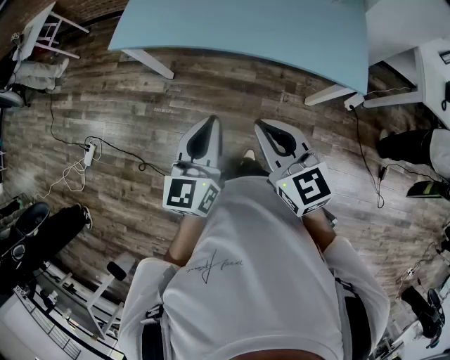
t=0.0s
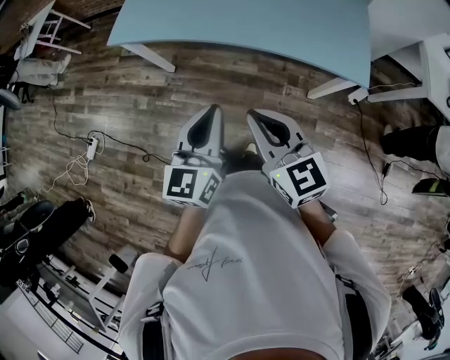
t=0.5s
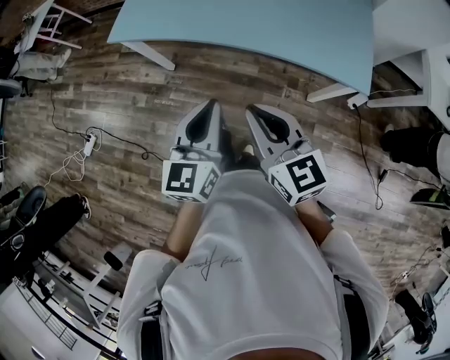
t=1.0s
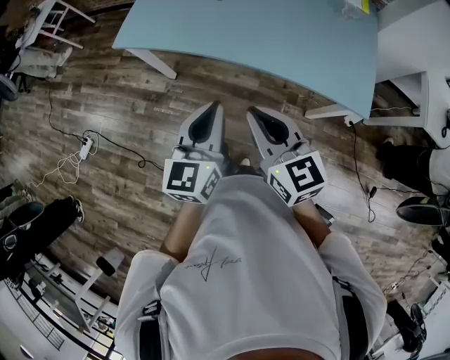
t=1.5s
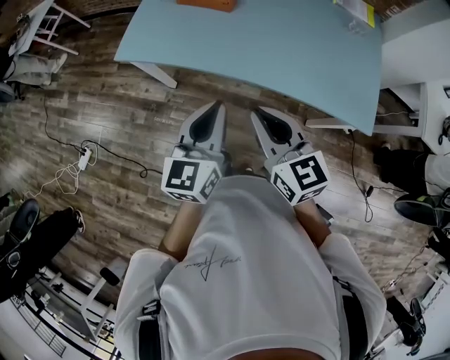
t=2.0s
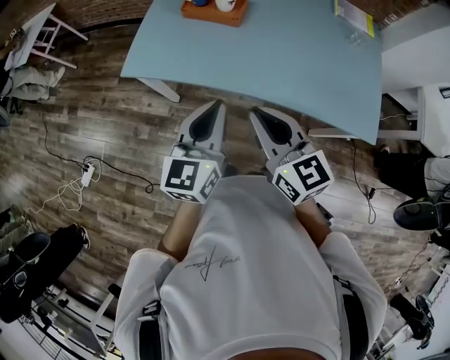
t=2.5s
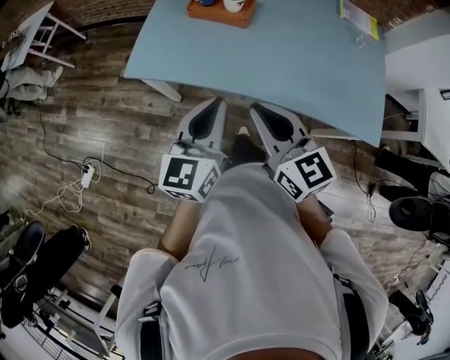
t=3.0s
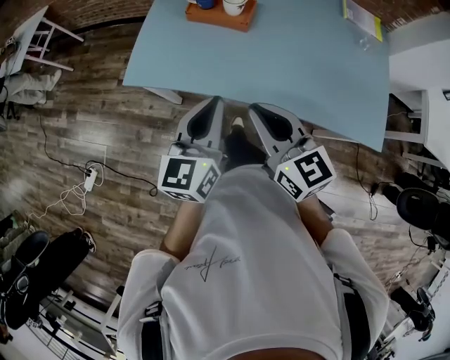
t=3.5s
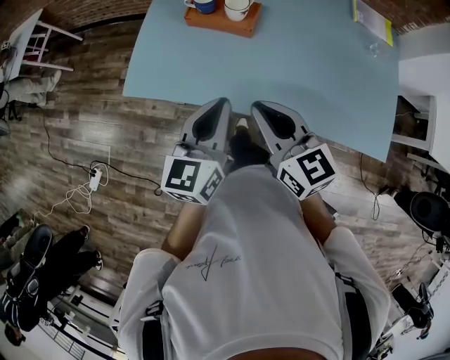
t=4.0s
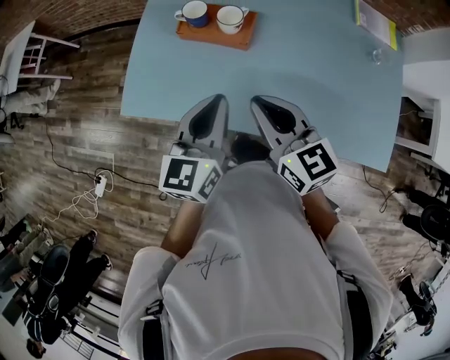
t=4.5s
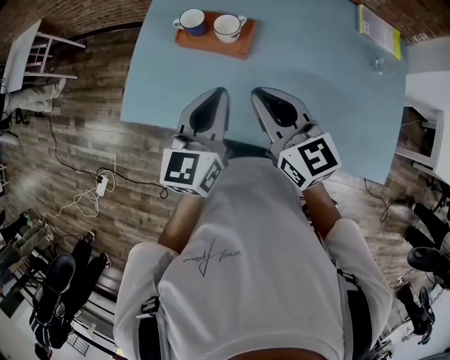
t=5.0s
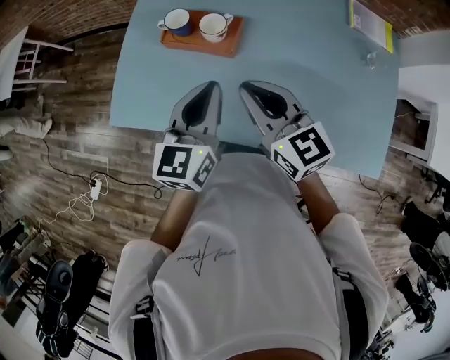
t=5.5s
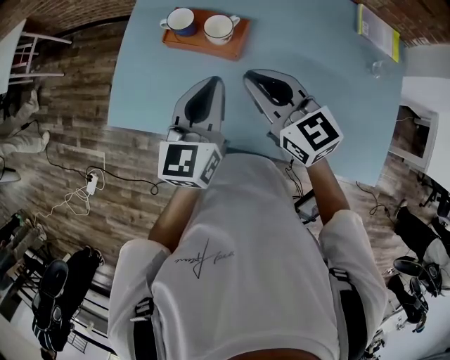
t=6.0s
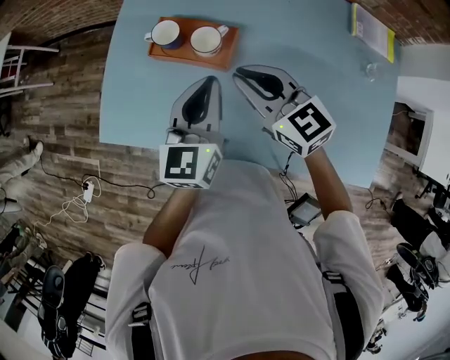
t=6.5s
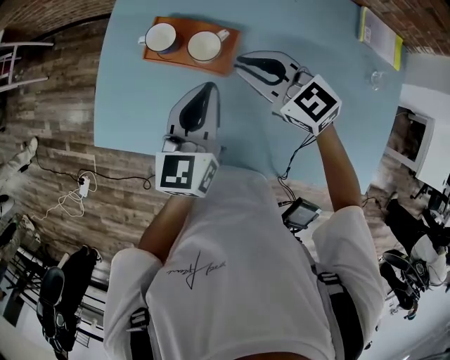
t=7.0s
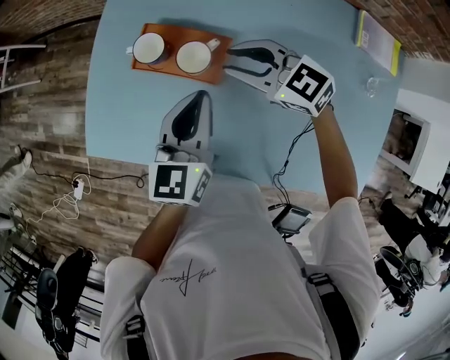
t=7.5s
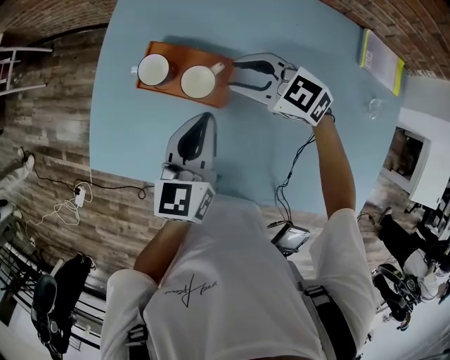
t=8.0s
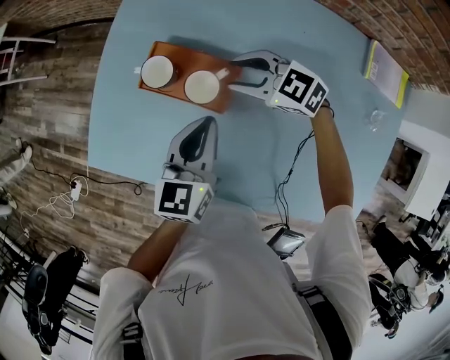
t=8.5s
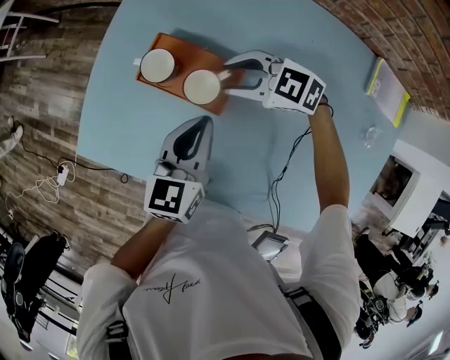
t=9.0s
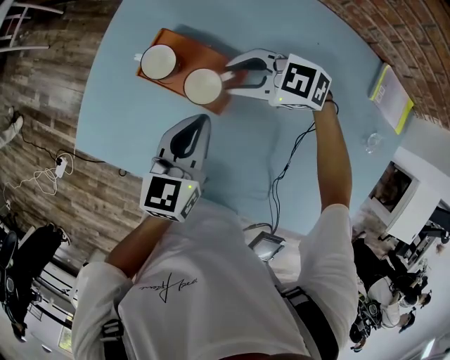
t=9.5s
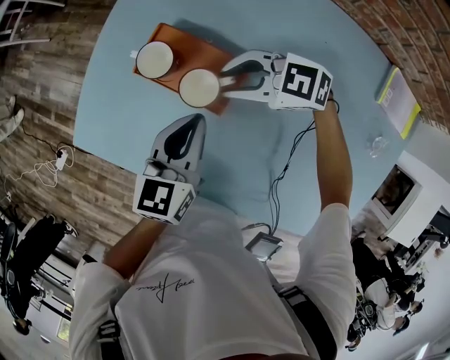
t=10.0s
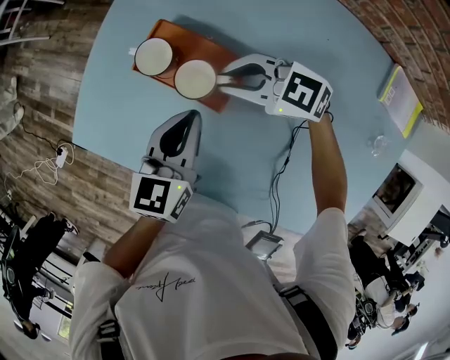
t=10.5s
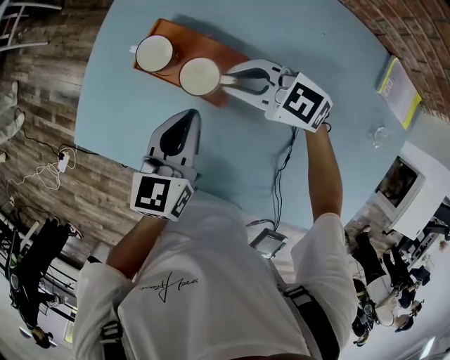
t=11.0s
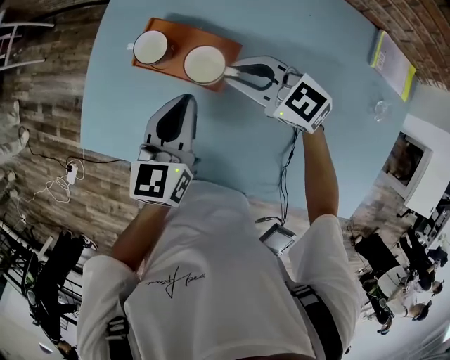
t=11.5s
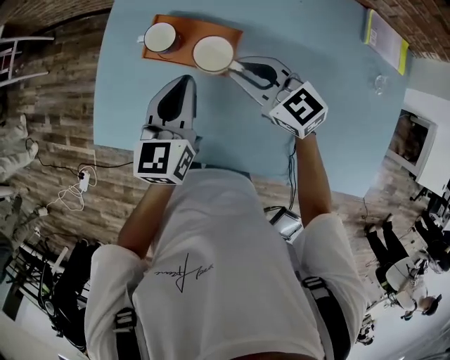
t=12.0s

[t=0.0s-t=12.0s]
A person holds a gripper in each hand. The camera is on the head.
t=0.0s to t=2.0s: The two grippers go some 15 cm forward.
t=2.0s to t=4.0s: The two grippers go roughly 15 cm forward.
t=4.0s to t=6.0s: Both grippers move forward, some 15 cm.
t=6.0s to t=8.0s: The right gripper moves forward, downward and to the right, roughly 20 cm, turns by roughly 30 degrees, and opens up. Meanwhile the left gripper is displaced forward, downward and to the right by about 10 cm.
t=8.0s to t=10.0s: The right gripper ends up some 5 cm from where it was, and rotates approximately 30 degrees, while the left gripper changes place by about 5 cm.
t=10.0s to t=12.0s: The right gripper is displaced upward by roughly 5 cm, and changes its angle by approximately 50 degrees; the left gripper moves approximately 5 cm.

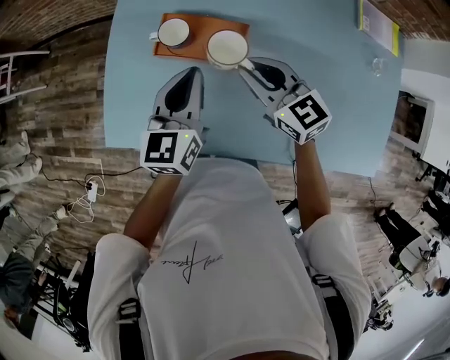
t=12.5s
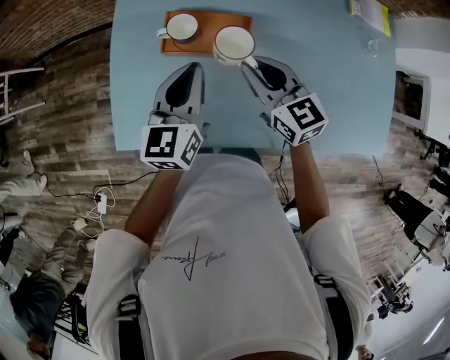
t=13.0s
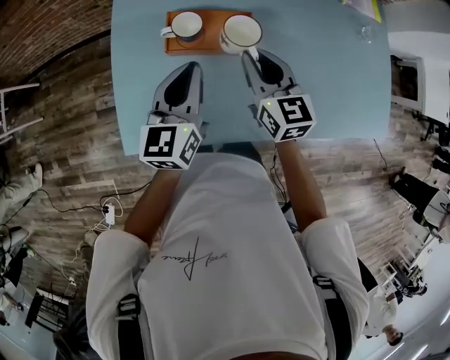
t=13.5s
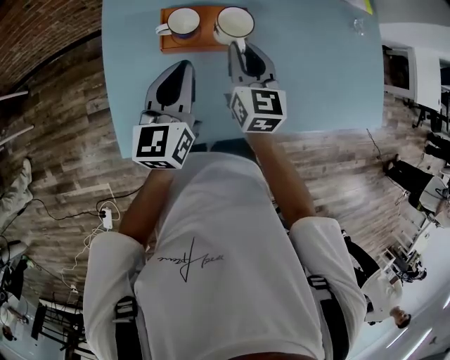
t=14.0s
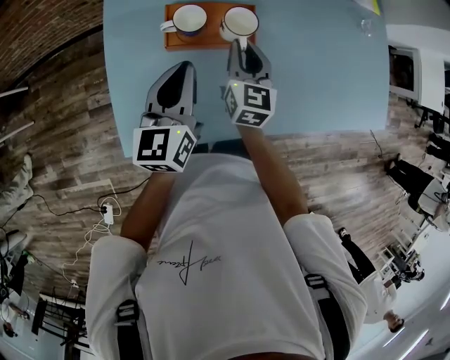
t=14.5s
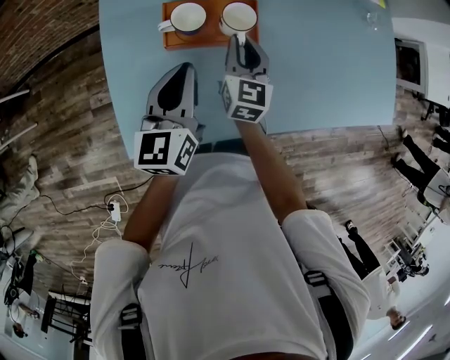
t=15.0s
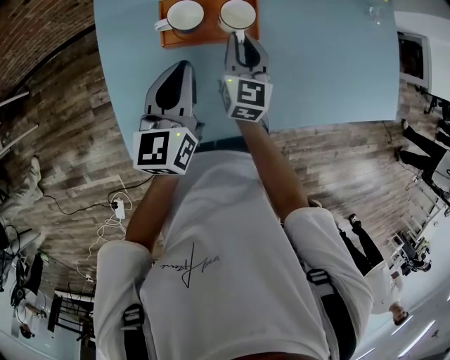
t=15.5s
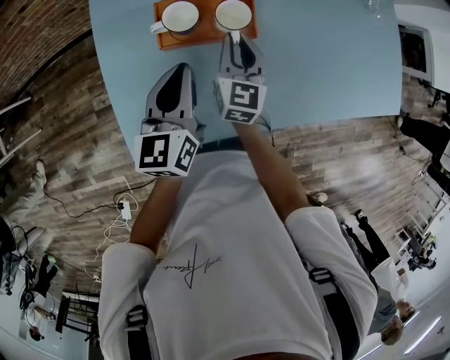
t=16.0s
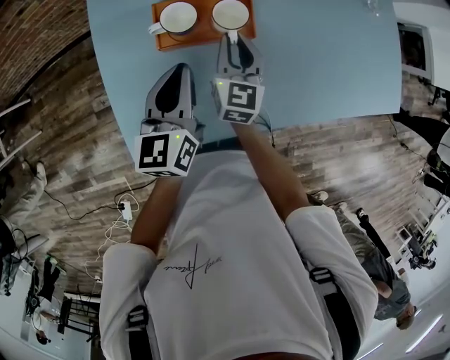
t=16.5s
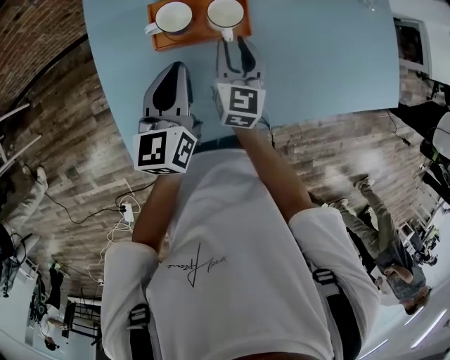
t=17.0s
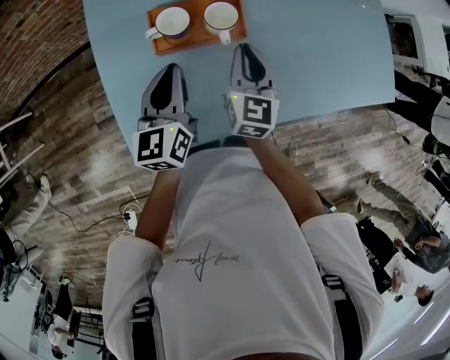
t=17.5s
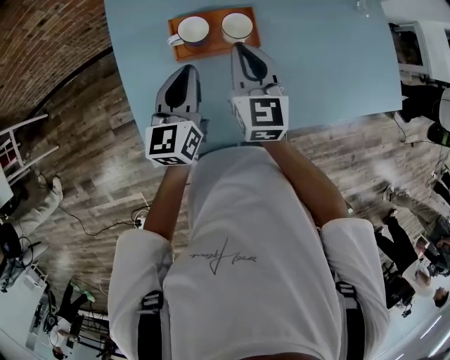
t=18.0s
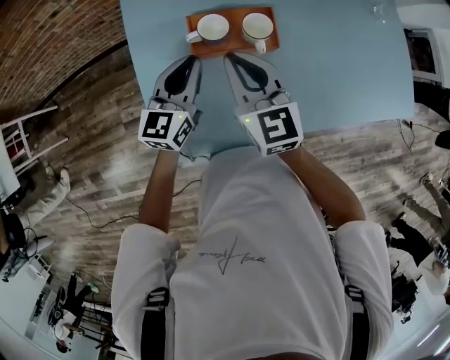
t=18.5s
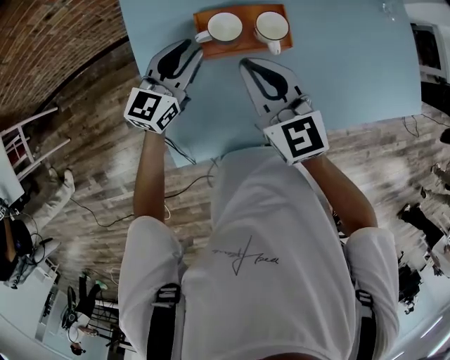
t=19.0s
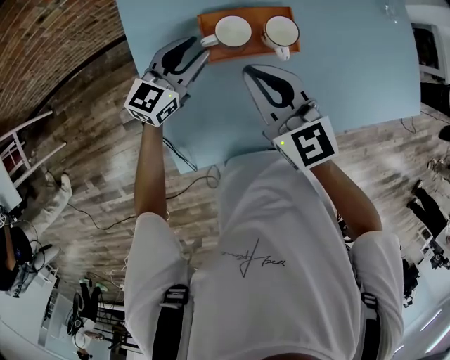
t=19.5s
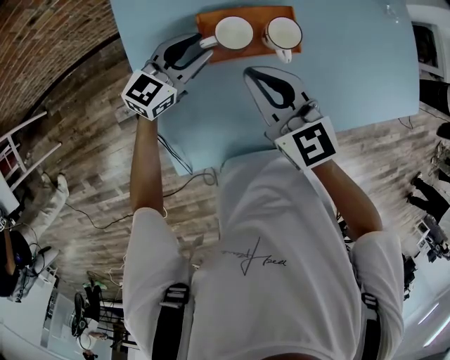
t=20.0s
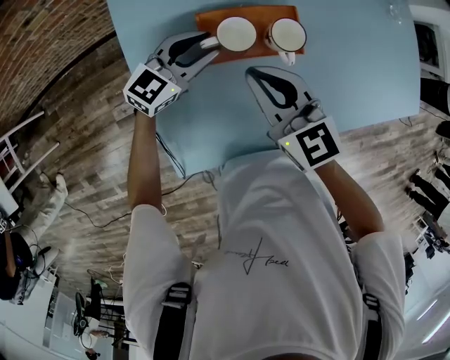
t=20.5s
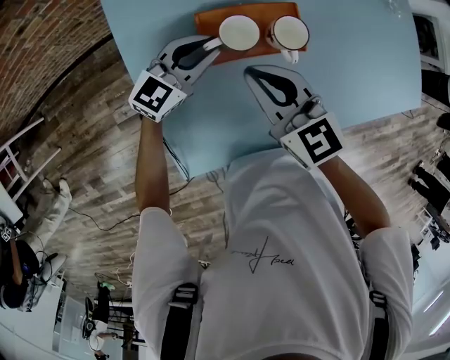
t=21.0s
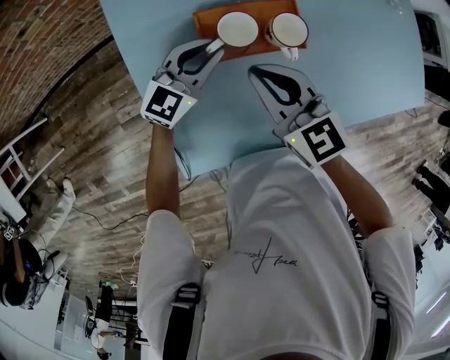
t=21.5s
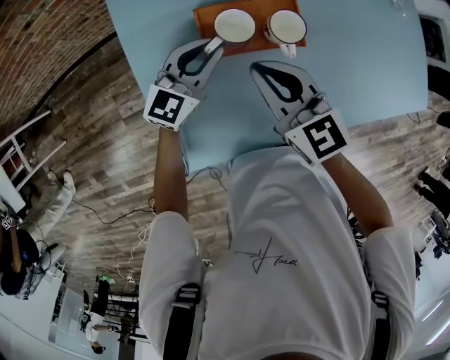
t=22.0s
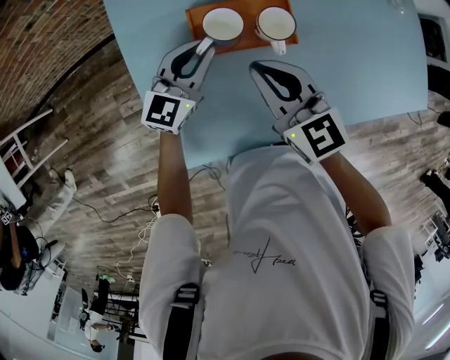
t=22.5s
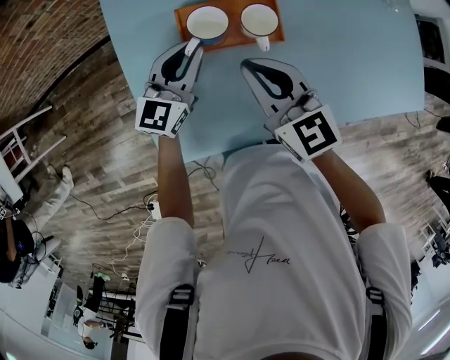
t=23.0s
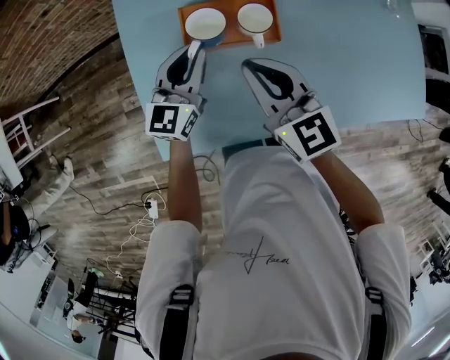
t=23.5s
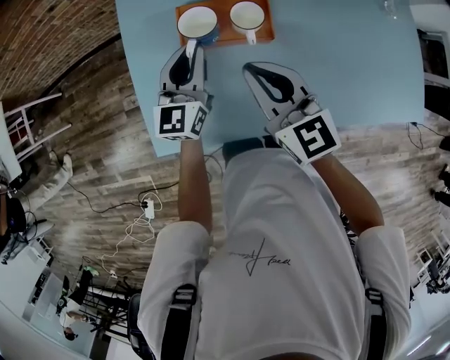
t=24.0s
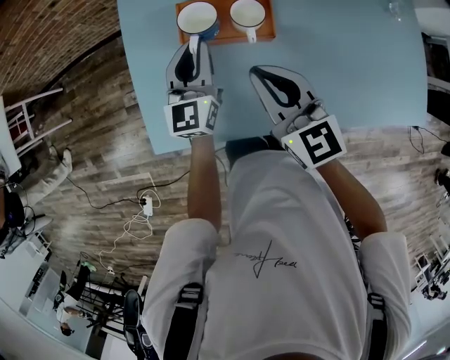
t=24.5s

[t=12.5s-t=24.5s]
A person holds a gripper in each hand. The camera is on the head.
t=12.5s to t=14.5s: The left gripper changes place by about 10 cm. Meanwhile the right gripper is displaced downward by roughly 5 cm, and swivels approximately 60 degrees.
t=14.5s to t=16.5s: There are only small adjustments of the grippers.
t=16.5s to t=18.5s: The left gripper ends up approximately 5 cm from where it was; the right gripper moves upward, to the left and backward, roughly 15 cm, and changes its angle by some 30 degrees.
t=18.5s to t=20.5s: The left gripper moves downward and forward, about 10 cm, rotates approximately 40 degrees, and opens up.
t=20.5s to t=22.5s: The grippers stay close to where they were, moving slightly.
t=22.5s to t=24.5s: The left gripper shifts by roughly 5 cm, and rotates approximately 40 degrees, while the right gripper goes about 5 cm backward and to the right.

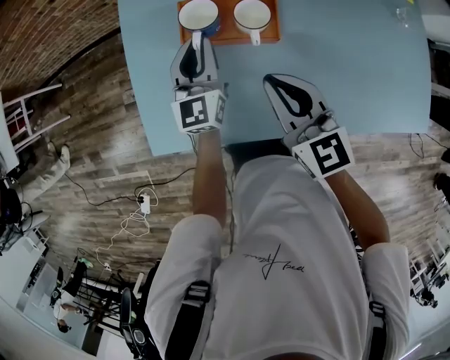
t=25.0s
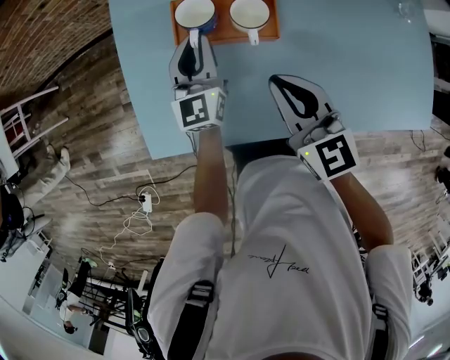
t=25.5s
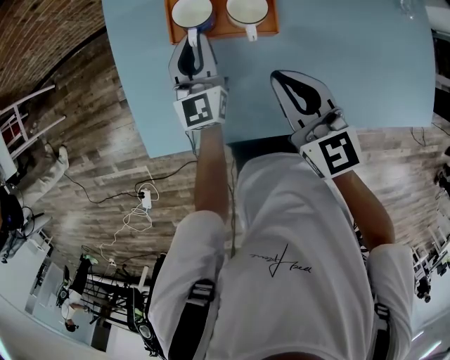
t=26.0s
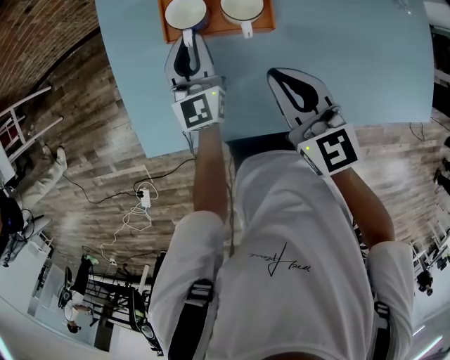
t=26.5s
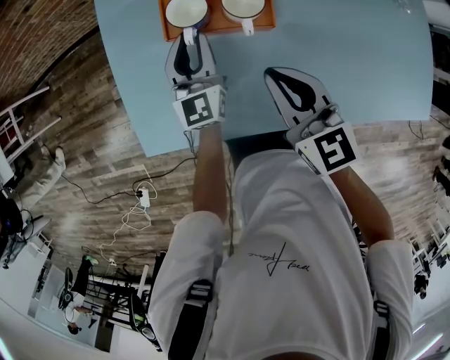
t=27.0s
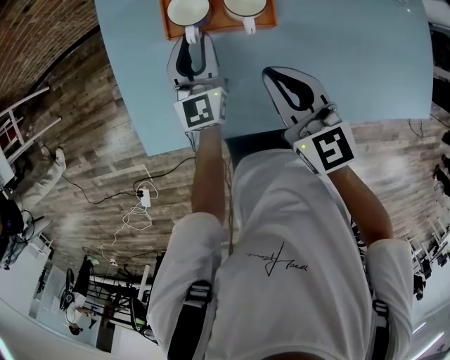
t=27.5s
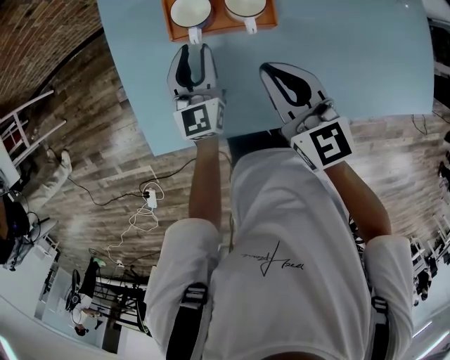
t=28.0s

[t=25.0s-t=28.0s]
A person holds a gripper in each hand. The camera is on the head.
t=25.0s to t=28.0s: There are only small adjustments of the grippers.
